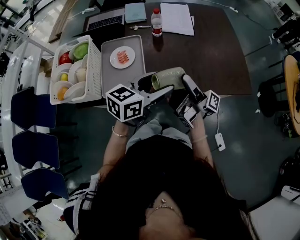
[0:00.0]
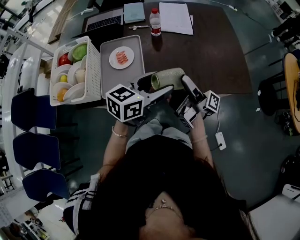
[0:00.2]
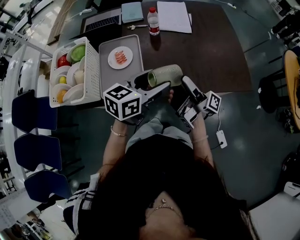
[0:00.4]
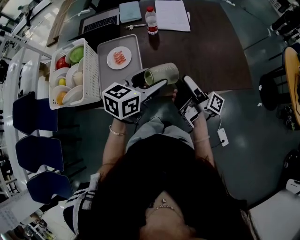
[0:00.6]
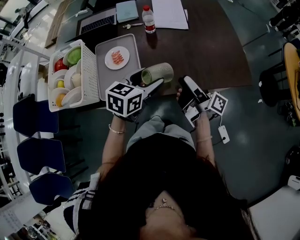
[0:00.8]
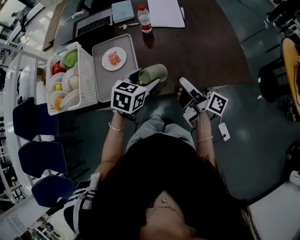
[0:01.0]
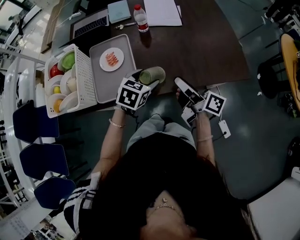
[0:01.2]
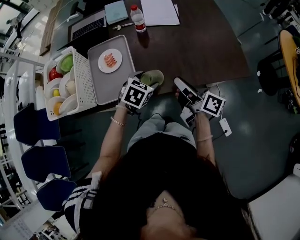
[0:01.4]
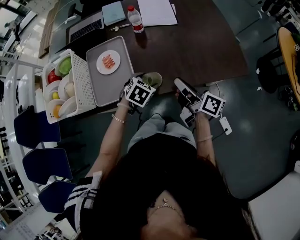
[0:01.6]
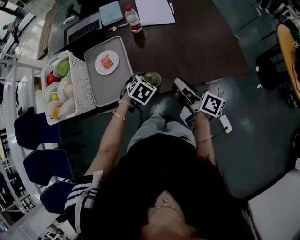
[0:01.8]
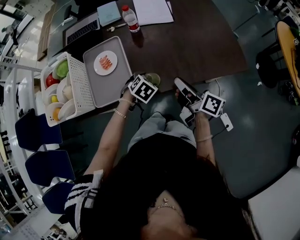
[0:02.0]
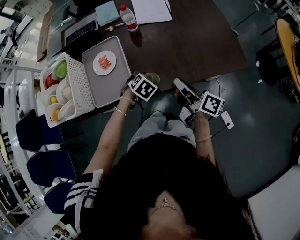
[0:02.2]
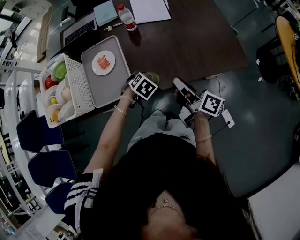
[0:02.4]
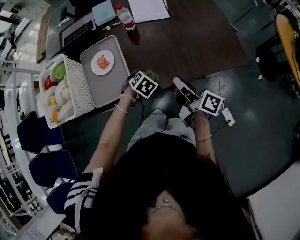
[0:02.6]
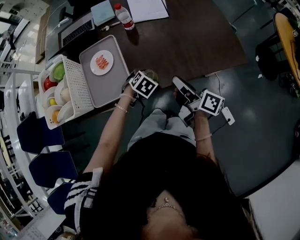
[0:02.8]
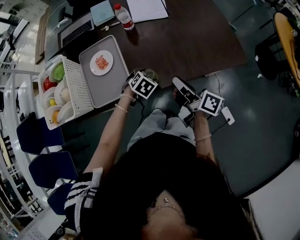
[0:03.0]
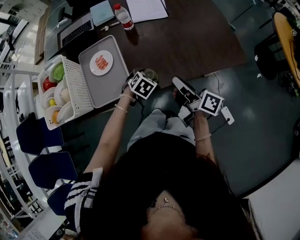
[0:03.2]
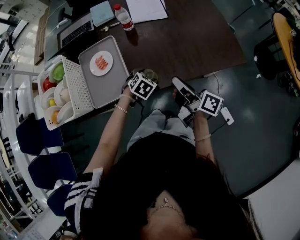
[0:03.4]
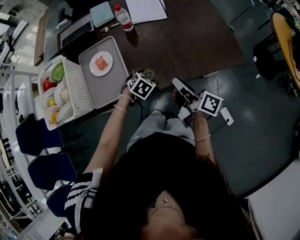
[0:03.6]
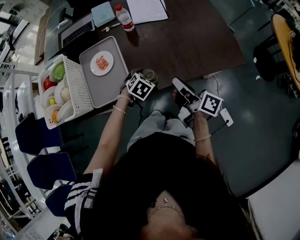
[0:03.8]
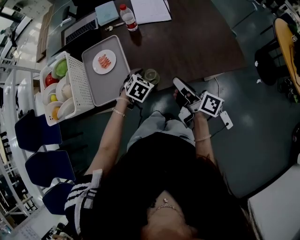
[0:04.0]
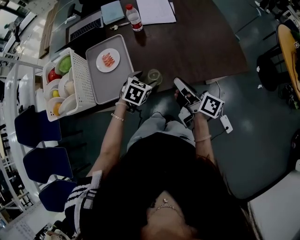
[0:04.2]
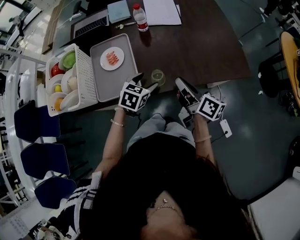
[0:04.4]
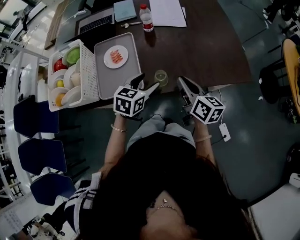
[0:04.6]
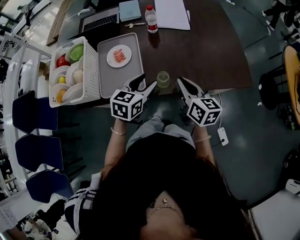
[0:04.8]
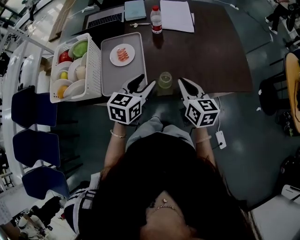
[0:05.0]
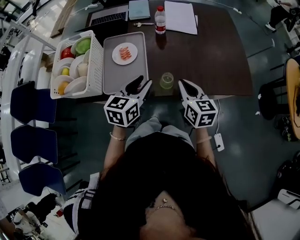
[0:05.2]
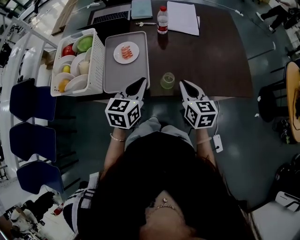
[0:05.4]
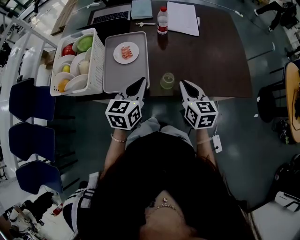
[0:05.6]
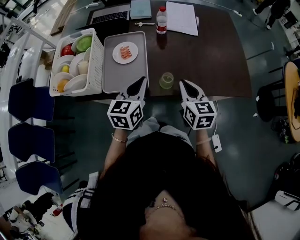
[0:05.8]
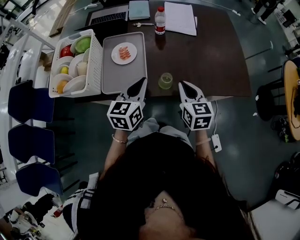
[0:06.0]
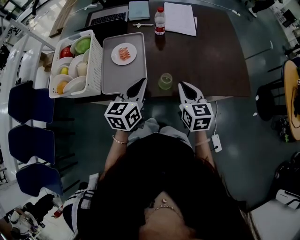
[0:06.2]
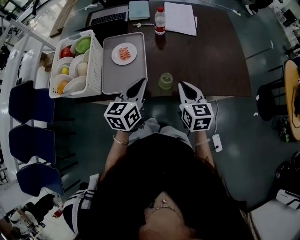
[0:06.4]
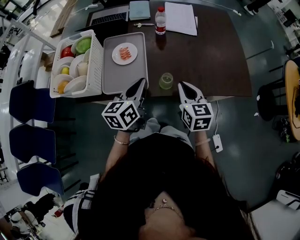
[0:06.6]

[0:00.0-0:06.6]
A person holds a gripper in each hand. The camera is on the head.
0:00.0 to 0:01.6: The left gripper heads downward, covering approximately 20 cm, and tilts its fingers about 40 degrees downward; the right gripper shifts roughly 5 cm to the right, turns by roughly 40 degrees, and closes up.
0:01.6 to 0:03.2: The left gripper goes about 5 cm downward.
0:03.2 to 0:05.0: The left gripper travels upward and to the left by some 20 cm, and points its fingers approximately 40 degrees further upward; the right gripper shifts approximately 5 cm to the left, and twists approximately 50 degrees counterclockwise, seen from behind.
0:05.0 to 0:06.6: The left gripper rotates approximately 30 degrees, and closes its fingers.

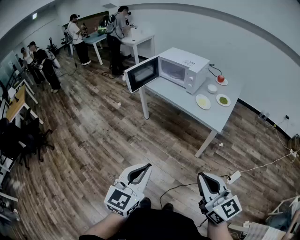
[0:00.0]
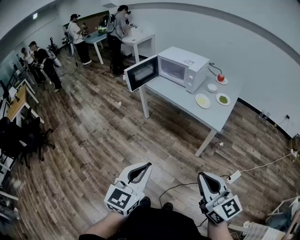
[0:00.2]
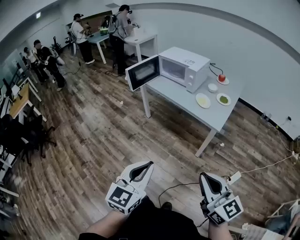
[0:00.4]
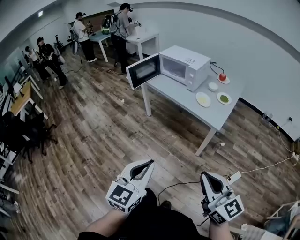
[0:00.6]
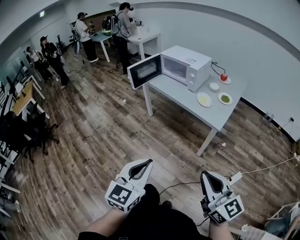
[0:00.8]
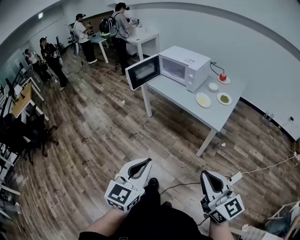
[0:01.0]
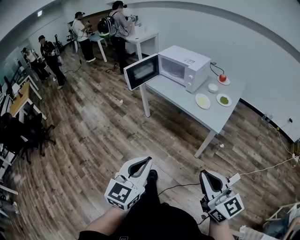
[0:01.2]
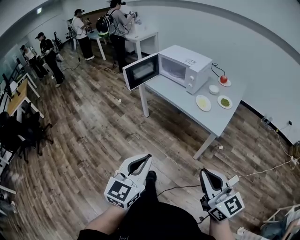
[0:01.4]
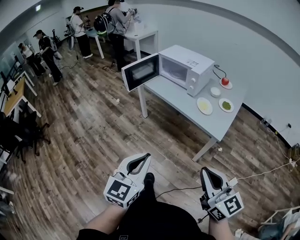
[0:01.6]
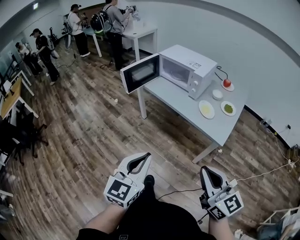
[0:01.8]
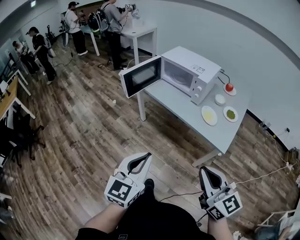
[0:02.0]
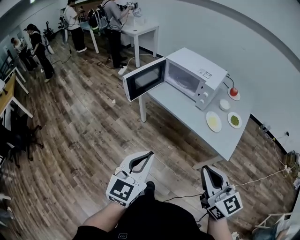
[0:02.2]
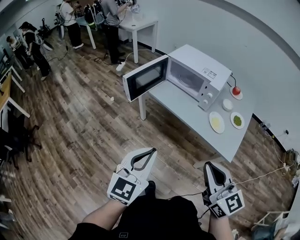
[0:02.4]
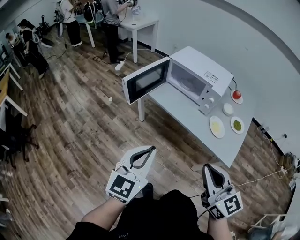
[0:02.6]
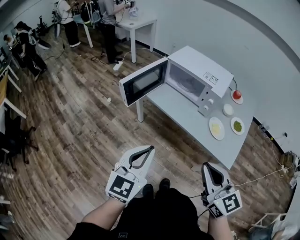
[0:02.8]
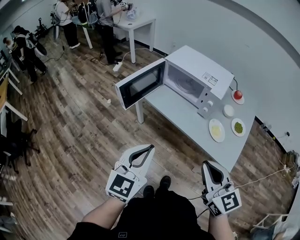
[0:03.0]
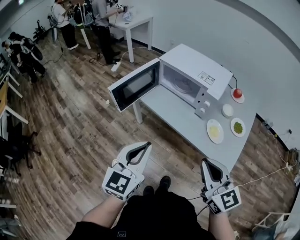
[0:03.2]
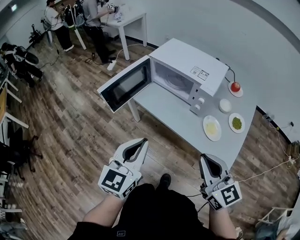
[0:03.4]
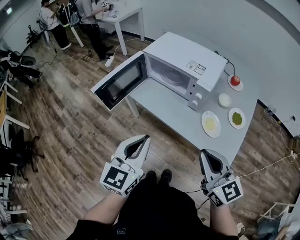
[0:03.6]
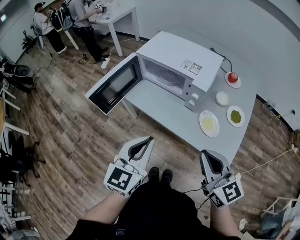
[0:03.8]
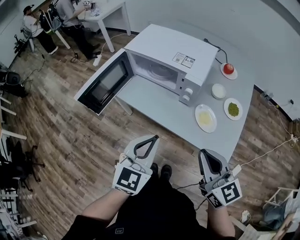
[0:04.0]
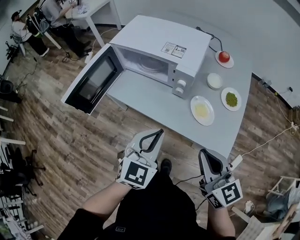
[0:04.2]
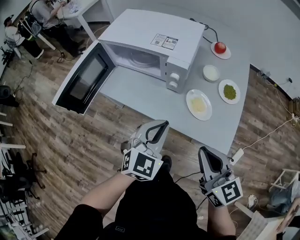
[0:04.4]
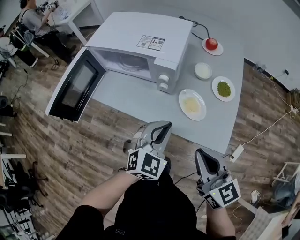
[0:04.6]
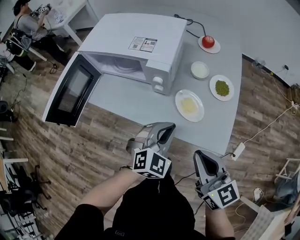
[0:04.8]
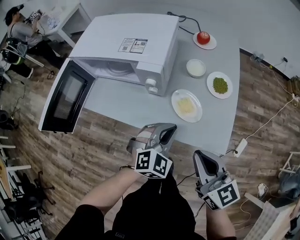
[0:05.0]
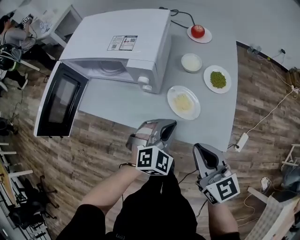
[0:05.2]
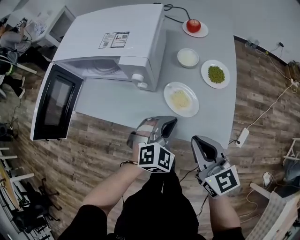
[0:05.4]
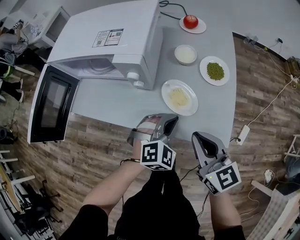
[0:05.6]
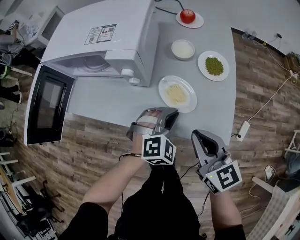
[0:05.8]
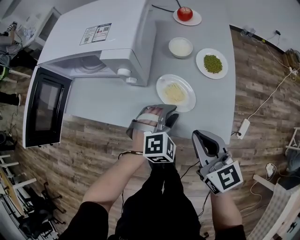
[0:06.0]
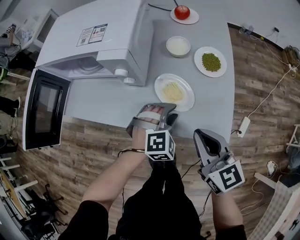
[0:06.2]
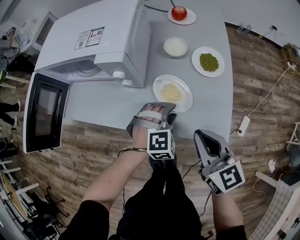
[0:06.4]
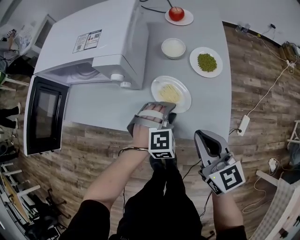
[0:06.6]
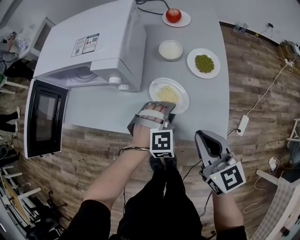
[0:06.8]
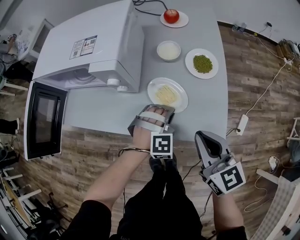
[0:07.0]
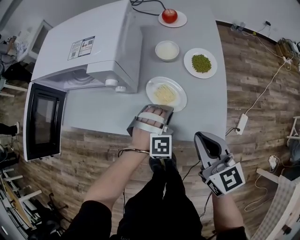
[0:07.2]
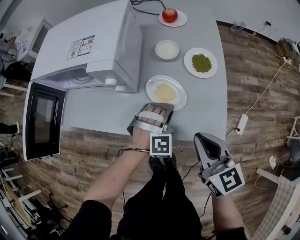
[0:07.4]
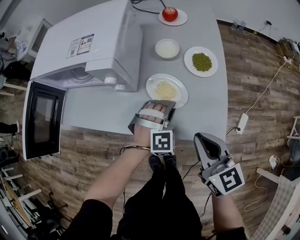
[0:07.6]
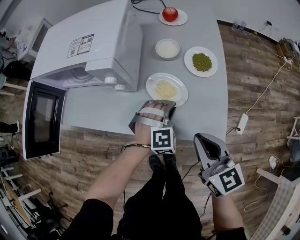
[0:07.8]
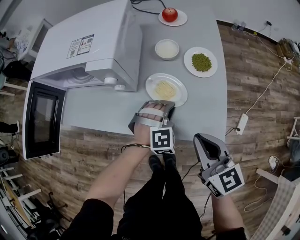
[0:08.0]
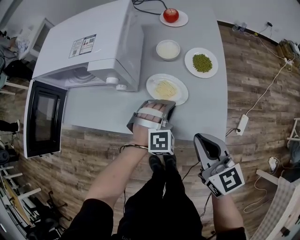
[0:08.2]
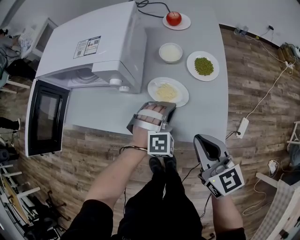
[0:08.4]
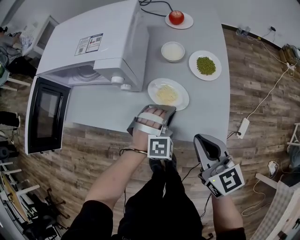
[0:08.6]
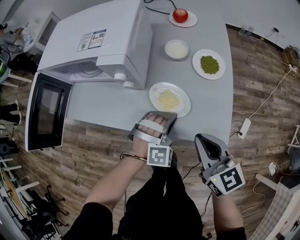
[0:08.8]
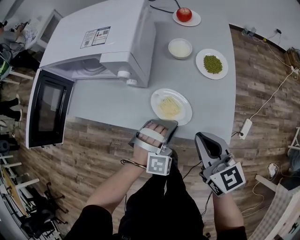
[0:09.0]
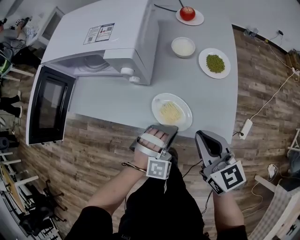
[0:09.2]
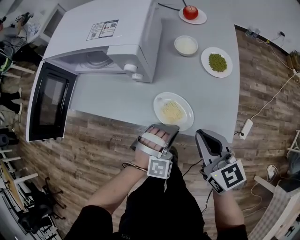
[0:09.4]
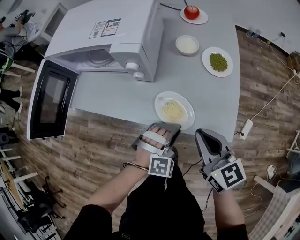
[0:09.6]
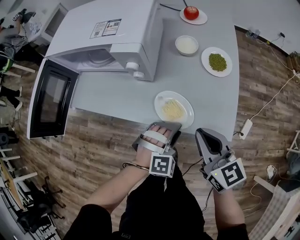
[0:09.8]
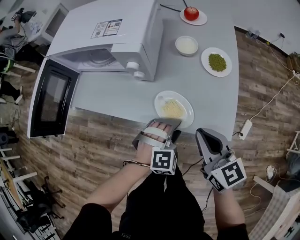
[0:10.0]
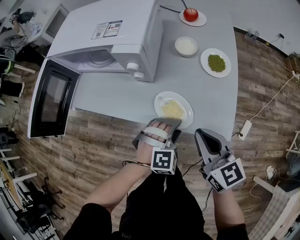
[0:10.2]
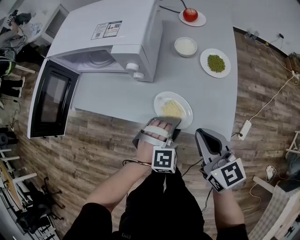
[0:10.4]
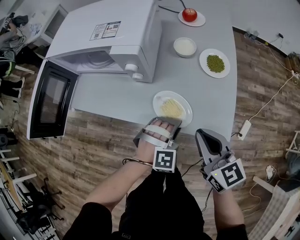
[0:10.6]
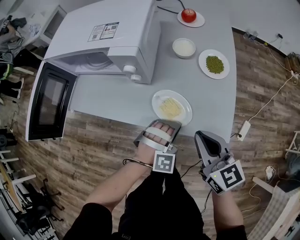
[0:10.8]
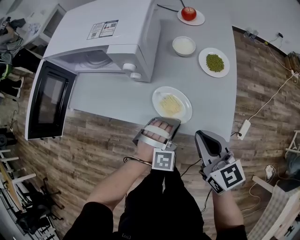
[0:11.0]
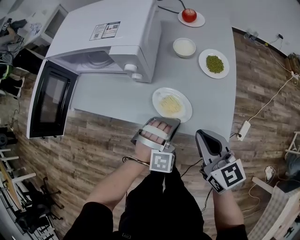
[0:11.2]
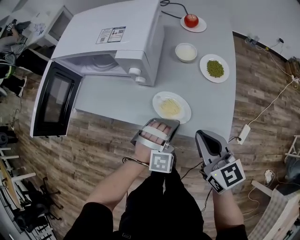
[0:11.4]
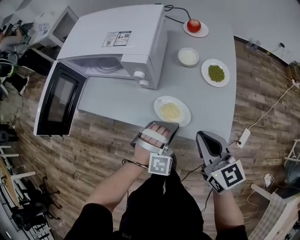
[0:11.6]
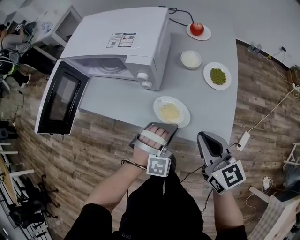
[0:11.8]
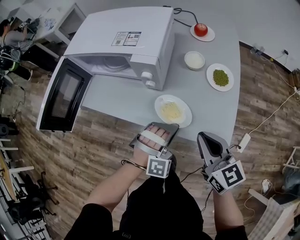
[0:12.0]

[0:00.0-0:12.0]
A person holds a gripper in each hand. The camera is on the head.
0:00.0 to 0:01.6: Both grippers travel together forward, about 10 cm.
0:01.6 to 0:03.0: The grippers both shift forward by roughly 30 cm.
0:03.0 to 0:04.4: The right gripper travels to the right, downward and forward by about 20 cm. The left gripper heads to the right, forward and downward, covering roughly 30 cm, and swivels roughly 30 degrees.
0:04.4 to 0:06.0: The right gripper travels downward, forward and to the right by roughly 15 cm; the left gripper travels downward and to the right by about 25 cm, swivels some 40 degrees, and opens its fingers.
0:07.6 to 0:09.0: The left gripper is displaced backward by some 5 cm.
0:09.0 to 0:10.4: The left gripper opens.
0:10.4 to 0:12.0: The left gripper shifts roughly 5 cm upward, changes its angle by about 20 degrees, and closes up.

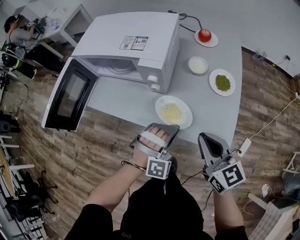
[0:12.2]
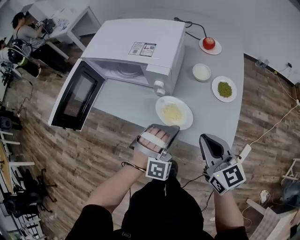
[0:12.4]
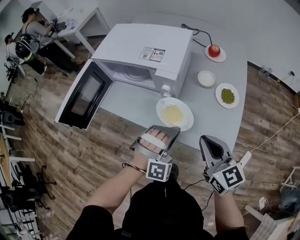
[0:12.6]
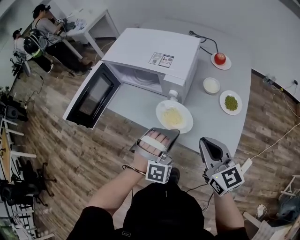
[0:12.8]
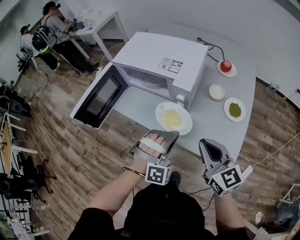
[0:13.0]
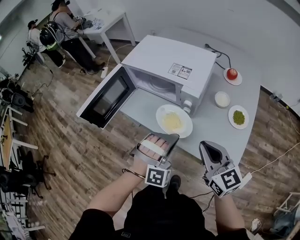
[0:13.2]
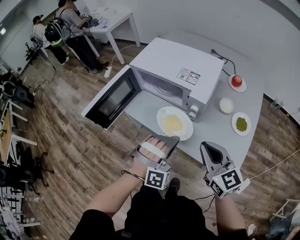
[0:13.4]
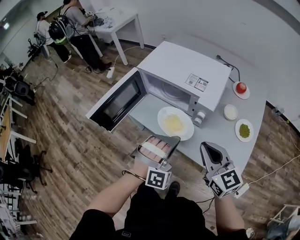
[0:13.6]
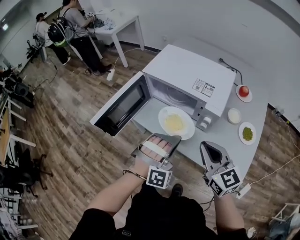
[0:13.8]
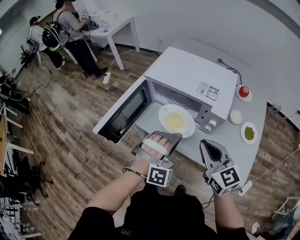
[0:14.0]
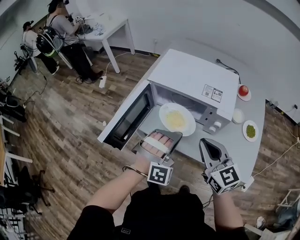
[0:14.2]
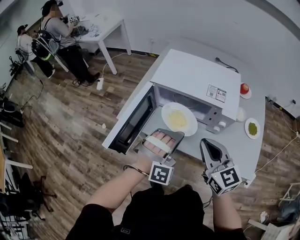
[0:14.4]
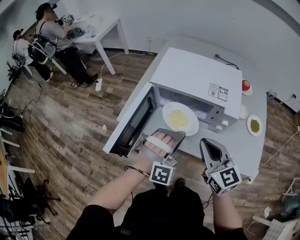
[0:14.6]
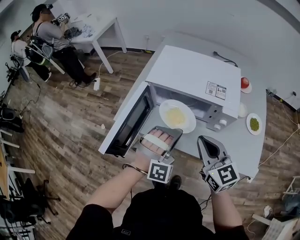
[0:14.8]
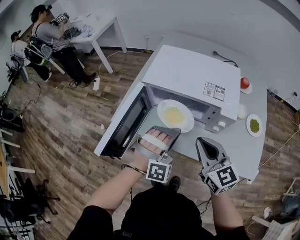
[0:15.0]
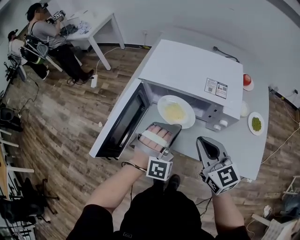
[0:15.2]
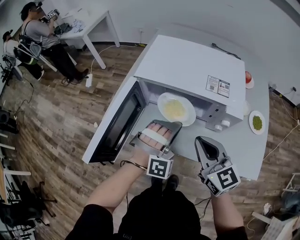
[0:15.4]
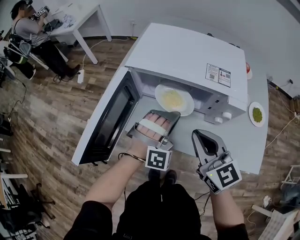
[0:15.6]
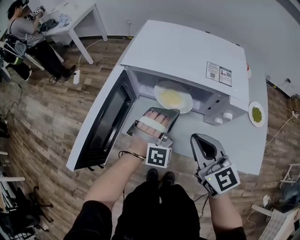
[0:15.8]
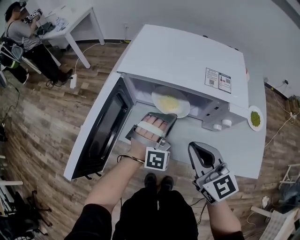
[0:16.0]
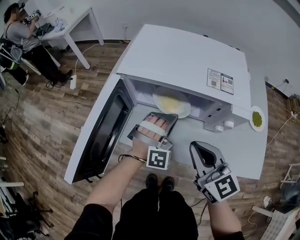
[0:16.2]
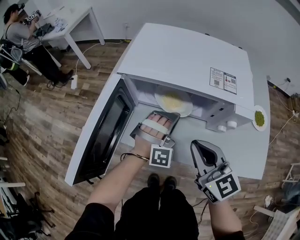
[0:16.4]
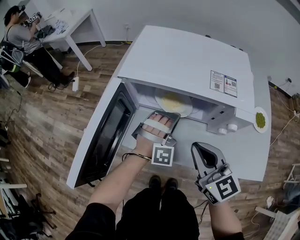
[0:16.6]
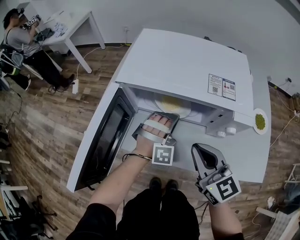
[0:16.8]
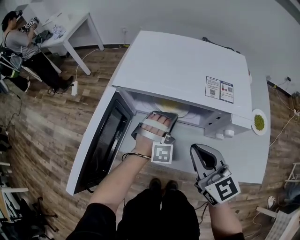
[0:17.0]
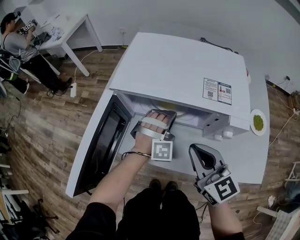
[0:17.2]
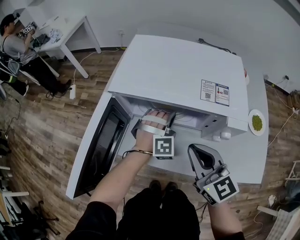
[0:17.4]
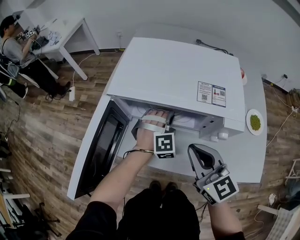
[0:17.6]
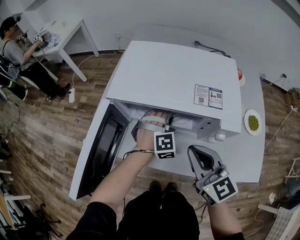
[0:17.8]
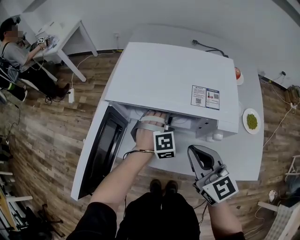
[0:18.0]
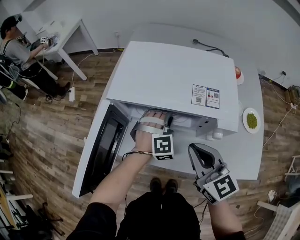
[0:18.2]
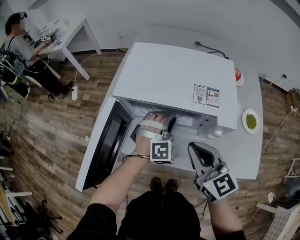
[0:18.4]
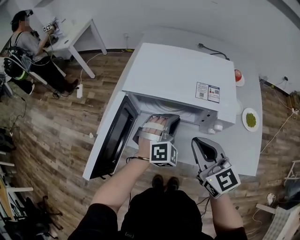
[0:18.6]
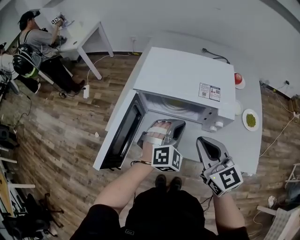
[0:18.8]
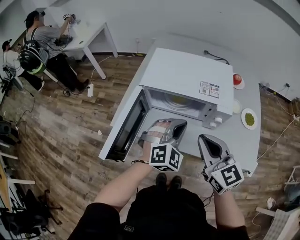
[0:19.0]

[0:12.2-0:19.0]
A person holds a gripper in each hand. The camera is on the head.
0:12.2 to 0:13.6: The left gripper goes about 20 cm to the left and upward; the right gripper goes about 15 cm to the left, upward and forward.
0:13.6 to 0:15.0: The left gripper heads forward and to the left, covering some 15 cm. Meanwhile the right gripper is displaced to the left and forward by about 15 cm.
0:15.0 to 0:16.2: The right gripper heads downward, covering roughly 10 cm. Meanwhile the left gripper is displaced downward and forward by approximately 15 cm.
0:16.2 to 0:17.6: The left gripper moves forward, roughly 5 cm.
0:17.6 to 0:19.0: The right gripper goes approximately 15 cm upward and backward. Meanwhile the left gripper travels upward and backward by roughly 25 cm, swivels about 30 degrees, and opens, then closes once more.
